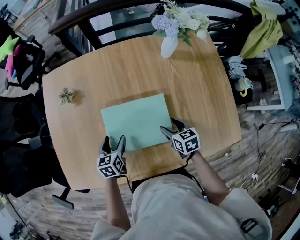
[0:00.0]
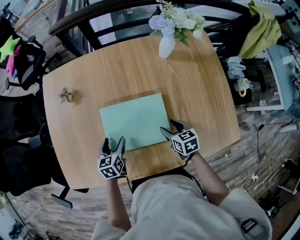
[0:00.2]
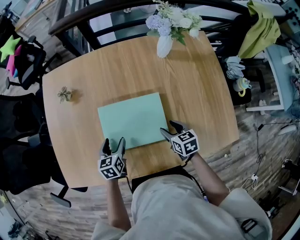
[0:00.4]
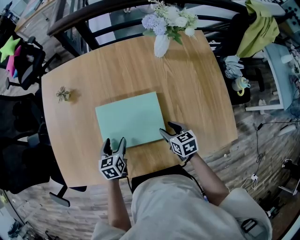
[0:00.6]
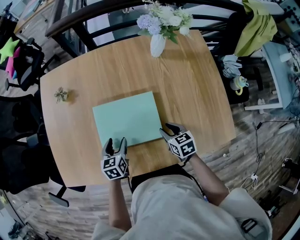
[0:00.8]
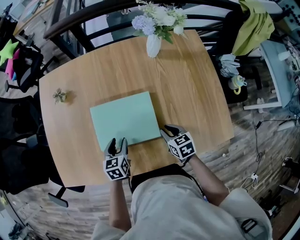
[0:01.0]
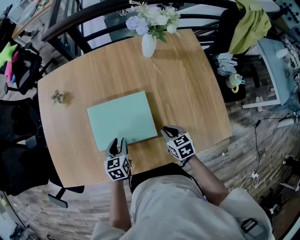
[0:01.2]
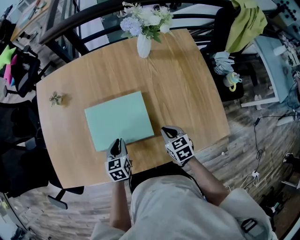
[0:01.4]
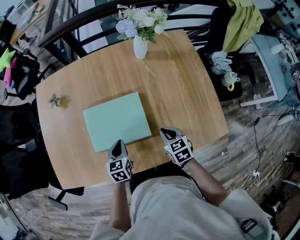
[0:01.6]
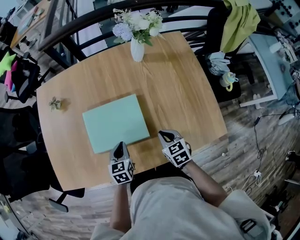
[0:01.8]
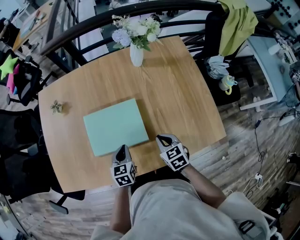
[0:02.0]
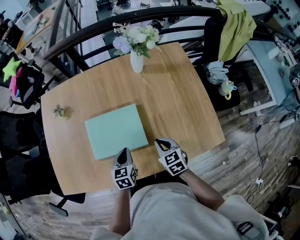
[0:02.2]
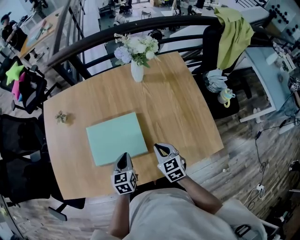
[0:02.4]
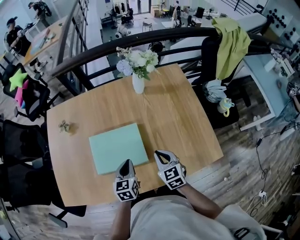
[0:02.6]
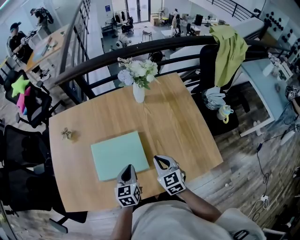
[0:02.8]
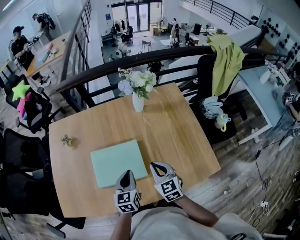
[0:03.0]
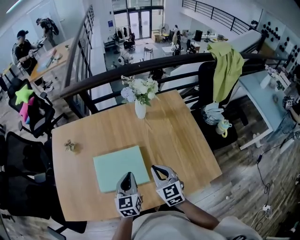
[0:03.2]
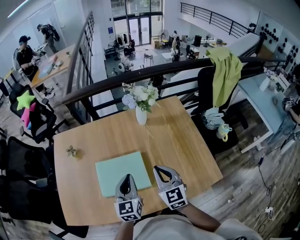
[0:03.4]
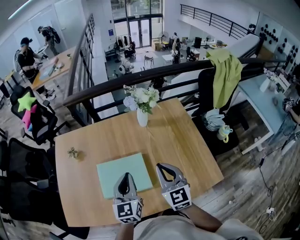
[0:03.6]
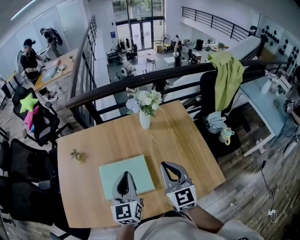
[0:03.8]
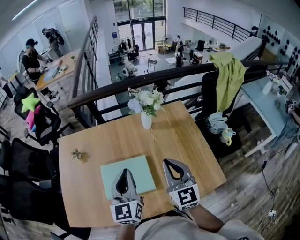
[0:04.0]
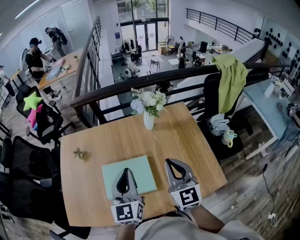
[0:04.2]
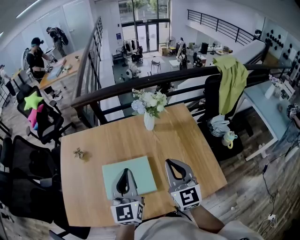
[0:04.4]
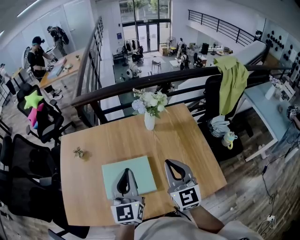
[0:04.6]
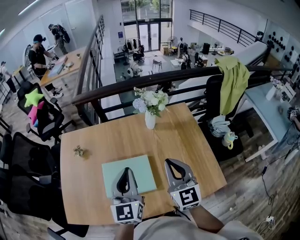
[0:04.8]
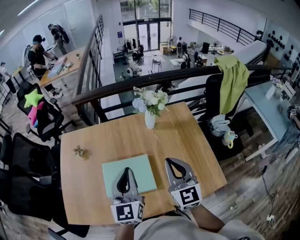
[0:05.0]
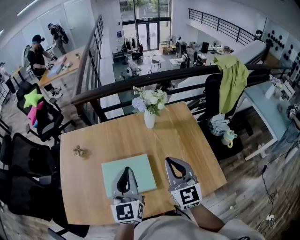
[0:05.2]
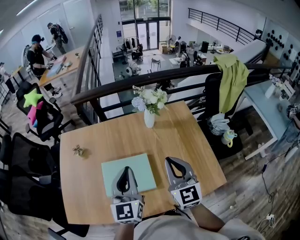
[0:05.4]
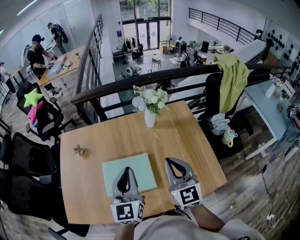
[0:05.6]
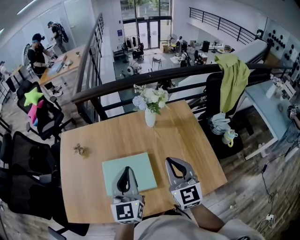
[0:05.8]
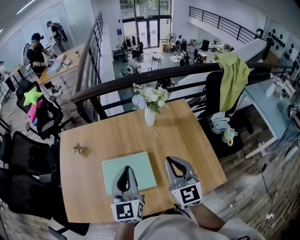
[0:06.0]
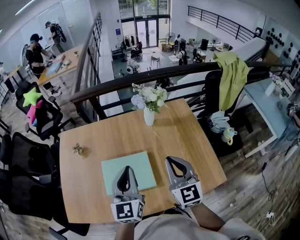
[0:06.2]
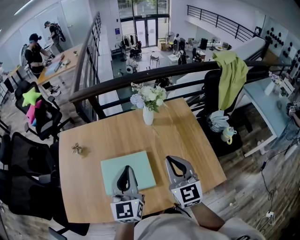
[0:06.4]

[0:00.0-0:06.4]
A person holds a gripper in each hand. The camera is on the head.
0:00.0 to 0:01.6: The right gripper is displaced backward and to the right by some 10 cm, and closes its fingers. The left gripper goes roughly 15 cm to the right and backward, and closes up.
0:01.6 to 0:03.2: The left gripper is displaced upward and to the right by some 20 cm, and turns by roughly 20 degrees, while the right gripper goes about 15 cm upward, and rotates about 30 degrees.
0:03.2 to 0:04.8: The grippers both shift upward by some 15 cm. The left gripper swivels about 20 degrees.
0:04.8 to 0:06.4: The two grippers keep their place.

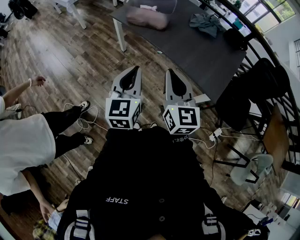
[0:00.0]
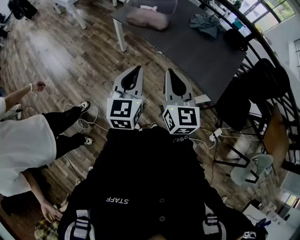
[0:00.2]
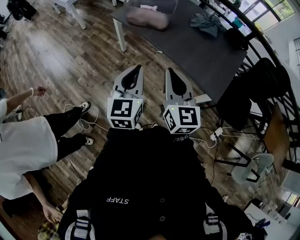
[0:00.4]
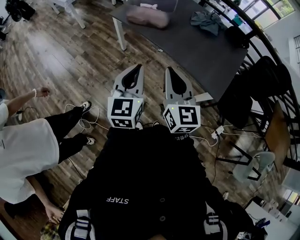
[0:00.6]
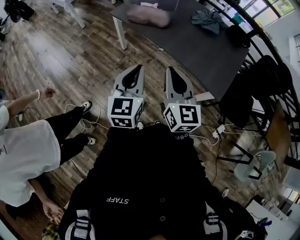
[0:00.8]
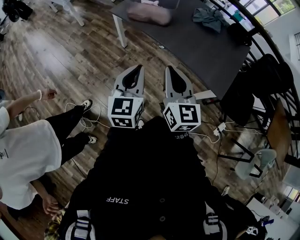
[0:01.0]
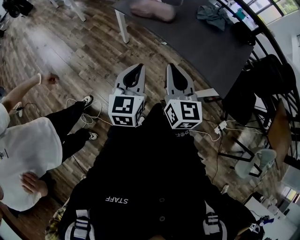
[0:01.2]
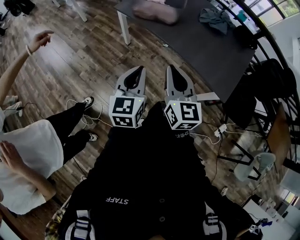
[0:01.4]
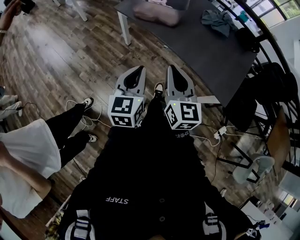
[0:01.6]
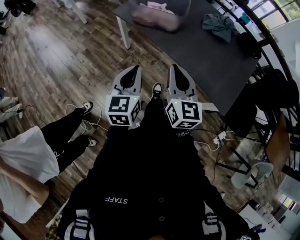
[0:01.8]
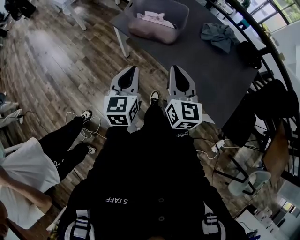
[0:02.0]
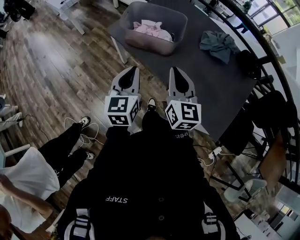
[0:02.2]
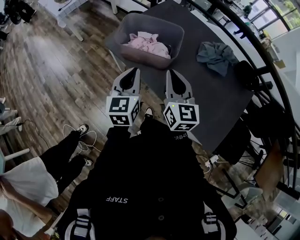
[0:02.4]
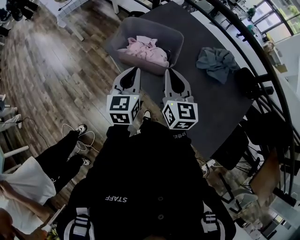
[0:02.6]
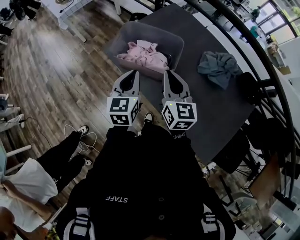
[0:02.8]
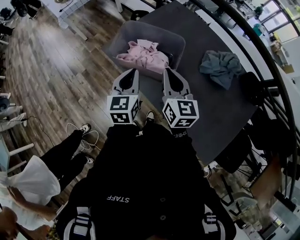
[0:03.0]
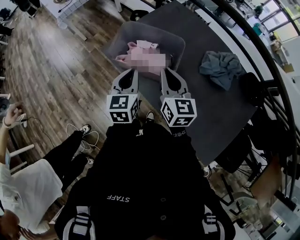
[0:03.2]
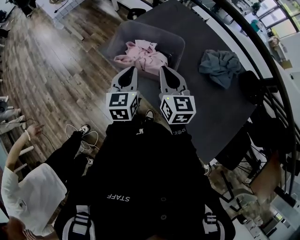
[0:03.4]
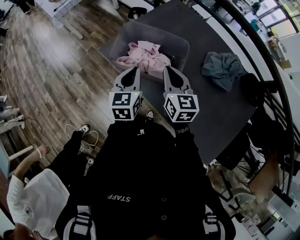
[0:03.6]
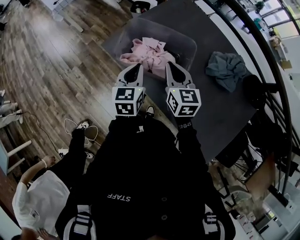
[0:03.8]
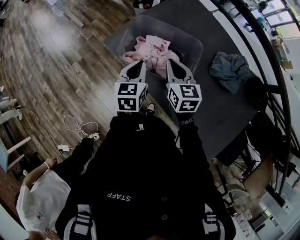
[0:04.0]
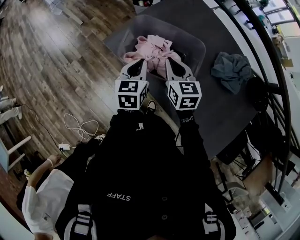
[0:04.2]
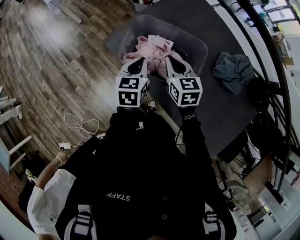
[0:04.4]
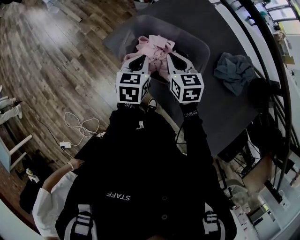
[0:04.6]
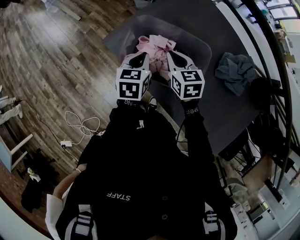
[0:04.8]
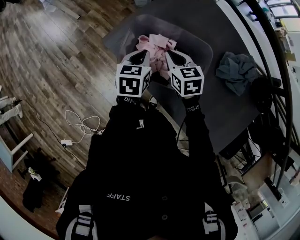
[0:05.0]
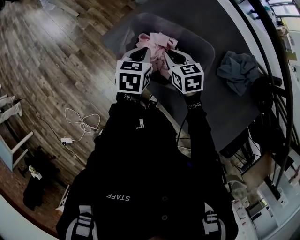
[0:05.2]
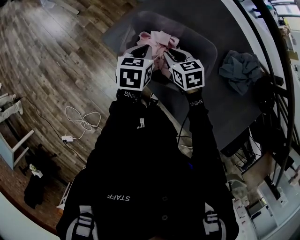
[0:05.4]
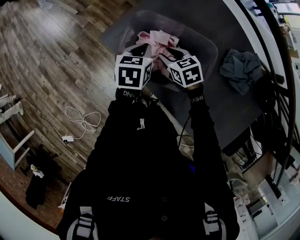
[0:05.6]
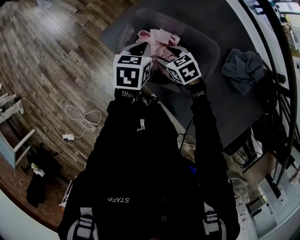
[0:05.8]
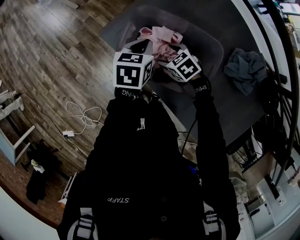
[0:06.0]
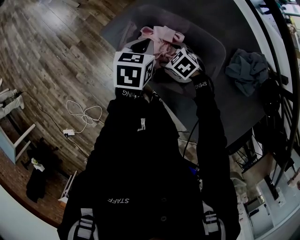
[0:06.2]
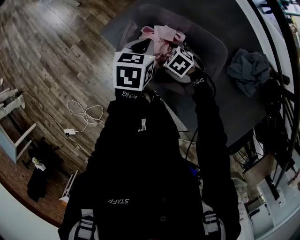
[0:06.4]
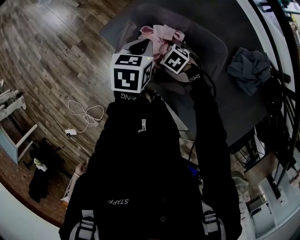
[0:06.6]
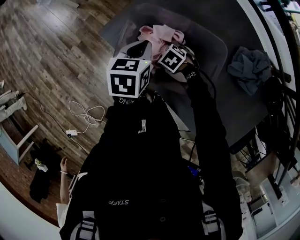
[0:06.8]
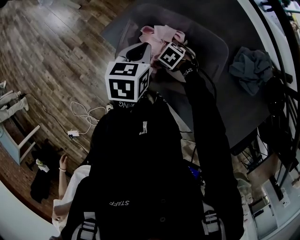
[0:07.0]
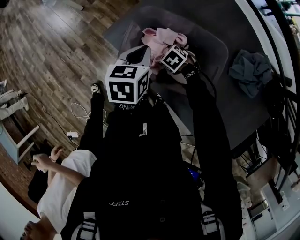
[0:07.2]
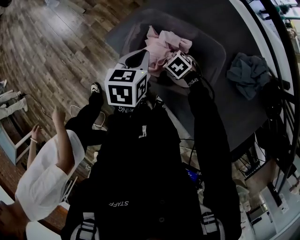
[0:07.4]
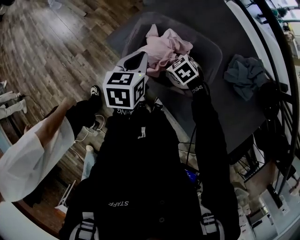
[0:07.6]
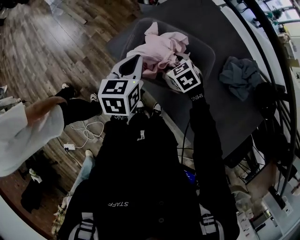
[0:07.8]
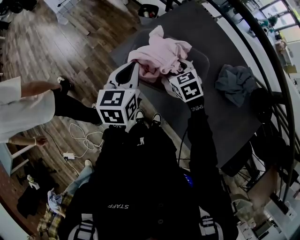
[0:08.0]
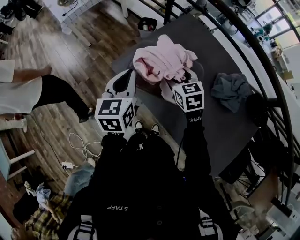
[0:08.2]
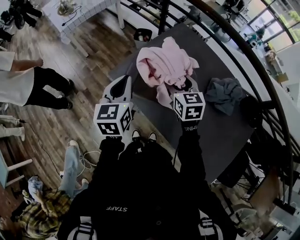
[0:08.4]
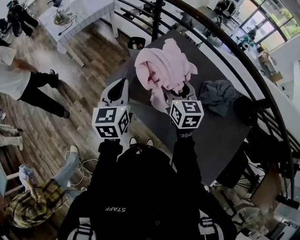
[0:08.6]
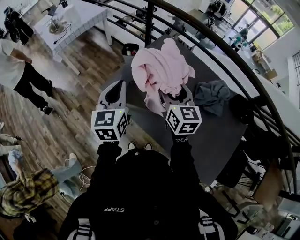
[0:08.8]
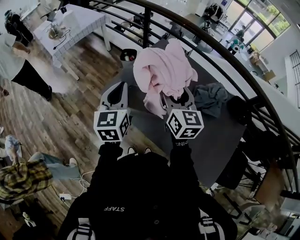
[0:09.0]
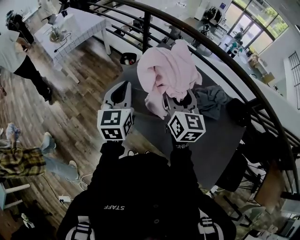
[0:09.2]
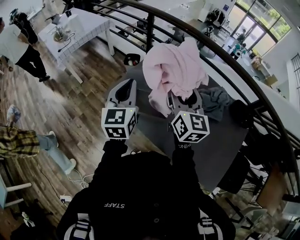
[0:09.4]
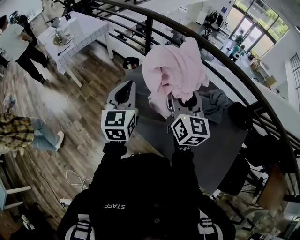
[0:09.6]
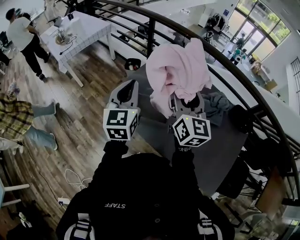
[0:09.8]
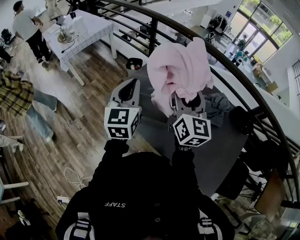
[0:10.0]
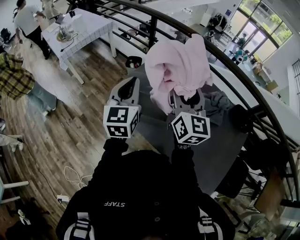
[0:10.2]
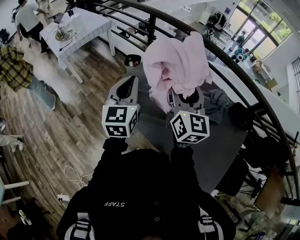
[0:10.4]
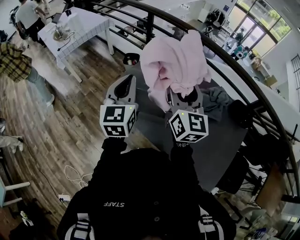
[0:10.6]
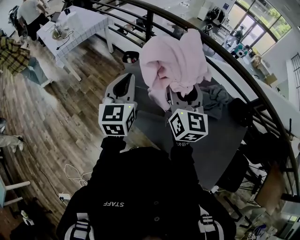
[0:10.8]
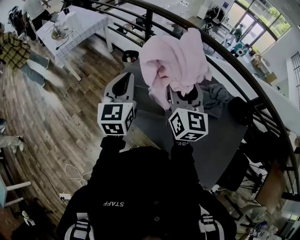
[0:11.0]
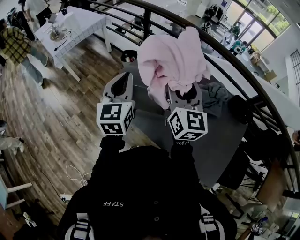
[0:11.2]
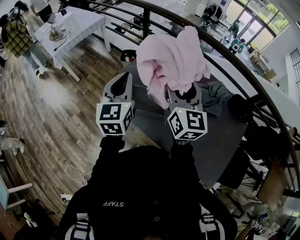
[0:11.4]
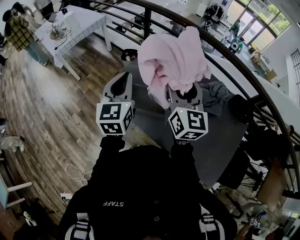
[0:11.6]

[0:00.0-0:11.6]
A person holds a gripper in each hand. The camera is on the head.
0:00.0 to 0:01.4: The right gripper shifts some 10 cm to the left and downward. The left gripper is displaced downward by about 5 cm.
0:01.4 to 0:02.8: The pair of grippers is taken forward, some 50 cm.
0:02.8 to 0:04.4: The left gripper shifts approximately 20 cm forward and downward; the right gripper goes approximately 20 cm forward, downward and to the left, and changes its angle by approximately 20 degrees.
0:04.4 to 0:05.8: The left gripper heads forward and downward, covering roughly 10 cm; the right gripper is displaced downward by some 15 cm, turns by approximately 30 degrees, and opens up.
0:05.8 to 0:07.2: The right gripper travels downward by about 10 cm, and turns by about 30 degrees.
0:07.2 to 0:08.8: The right gripper goes roughly 50 cm upward, and tilts its fingers roughly 60 degrees upward, while the left gripper shifts about 25 cm upward, and tips its fingers upward by some 30 degrees.
0:08.8 to 0:10.2: The right gripper is displaced upward by roughly 10 cm. Meanwhile the left gripper shifts roughly 5 cm upward.
0:10.2 to 0:11.6: The grippers stay close to where they were, moving slightly.

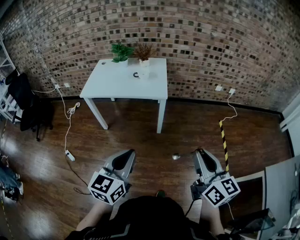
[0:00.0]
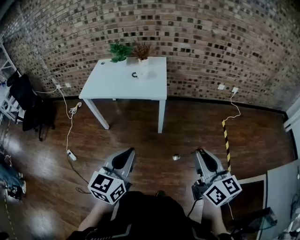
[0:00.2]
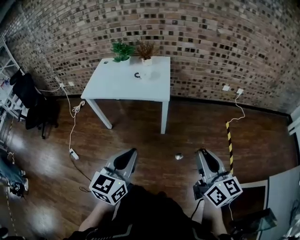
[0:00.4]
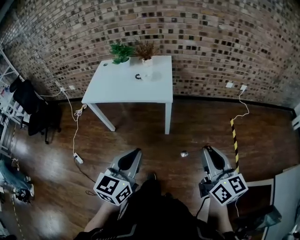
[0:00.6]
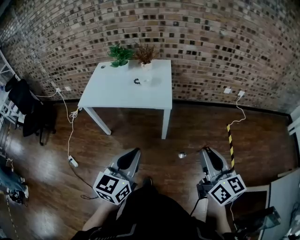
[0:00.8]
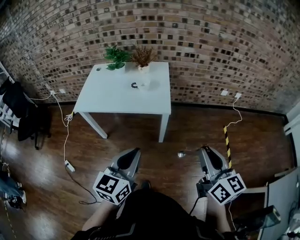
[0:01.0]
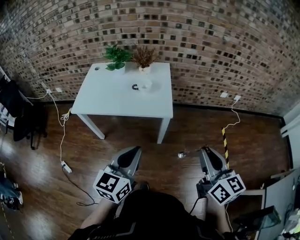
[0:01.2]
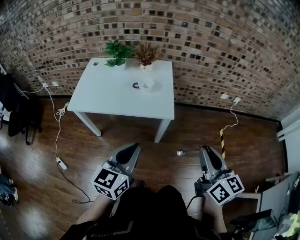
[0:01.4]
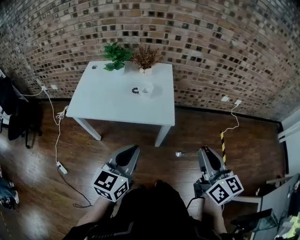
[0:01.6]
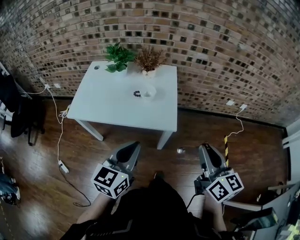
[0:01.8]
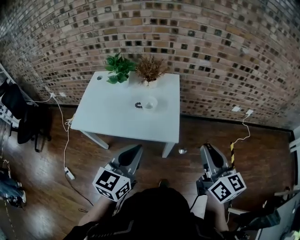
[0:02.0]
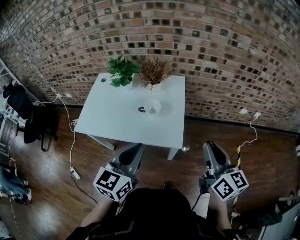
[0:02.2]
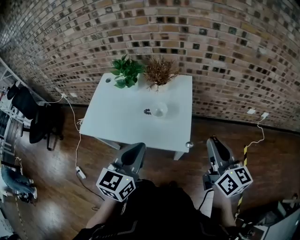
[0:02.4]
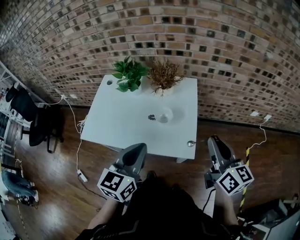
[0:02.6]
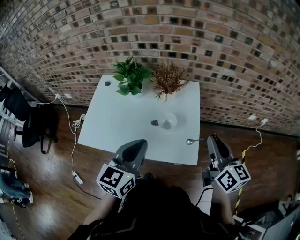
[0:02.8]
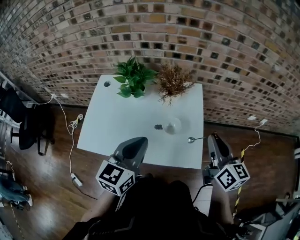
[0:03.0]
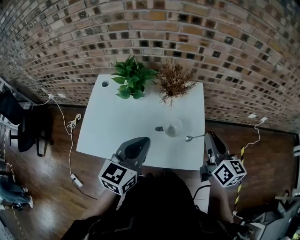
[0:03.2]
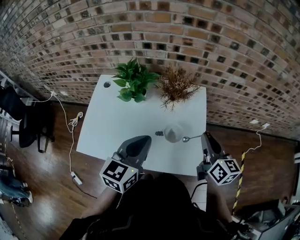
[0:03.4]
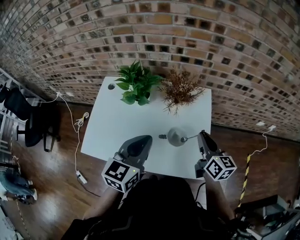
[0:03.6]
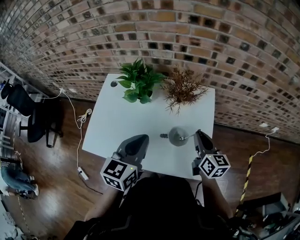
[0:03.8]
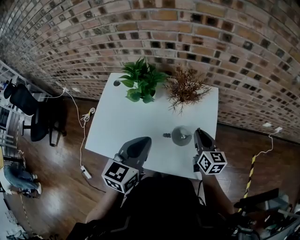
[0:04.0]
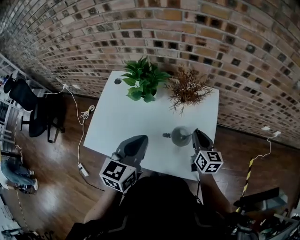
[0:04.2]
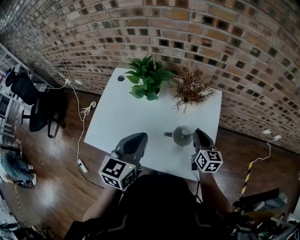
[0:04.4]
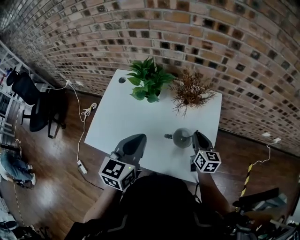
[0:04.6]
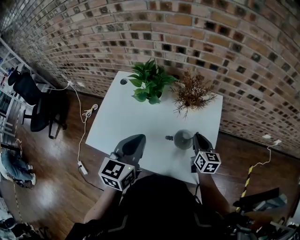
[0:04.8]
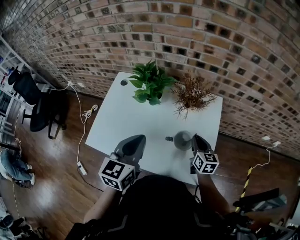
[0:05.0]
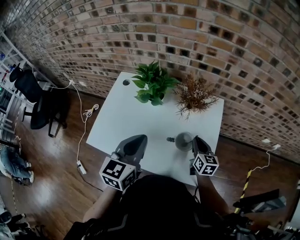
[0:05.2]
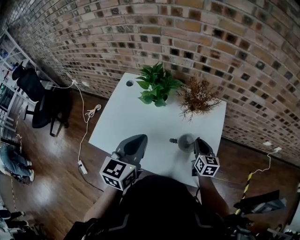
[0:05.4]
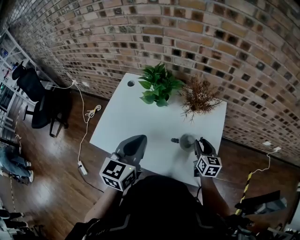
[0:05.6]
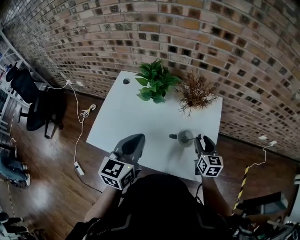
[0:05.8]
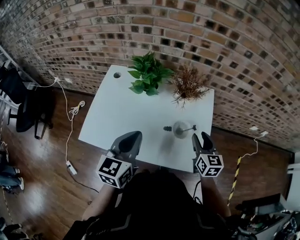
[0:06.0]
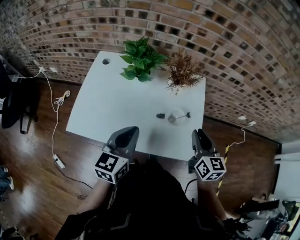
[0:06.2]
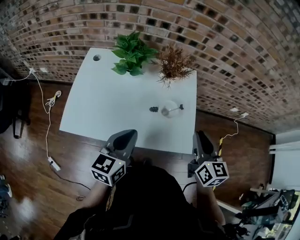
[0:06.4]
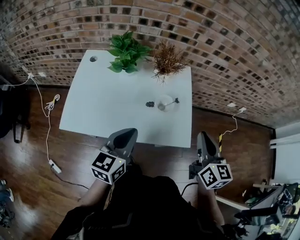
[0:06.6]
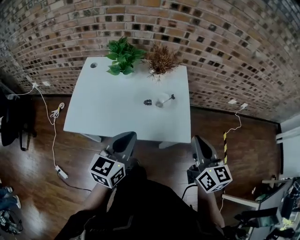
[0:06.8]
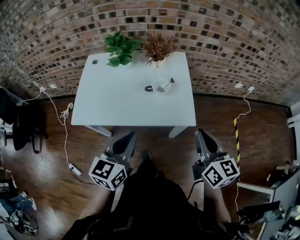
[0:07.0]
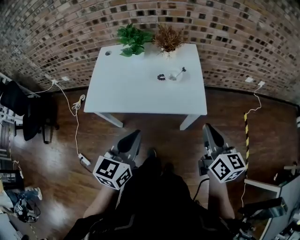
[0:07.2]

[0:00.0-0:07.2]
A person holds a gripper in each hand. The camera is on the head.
0:00.0 to 0:01.4: Both grippers move forward, about 25 cm.
0:01.4 to 0:02.8: The two grippers go some 35 cm forward.
0:02.8 to 0:04.4: The right gripper heads downward, forward and to the left, covering about 30 cm. Meanwhile the left gripper goes some 15 cm forward and to the left.
0:04.4 to 0:05.8: The left gripper moves approximately 5 cm; the right gripper opens its fingers.
0:05.8 to 0:07.2: The left gripper goes approximately 25 cm backward, while the right gripper shifts some 35 cm backward and upward, and closes its fingers.
